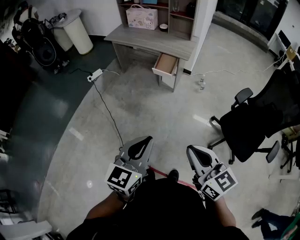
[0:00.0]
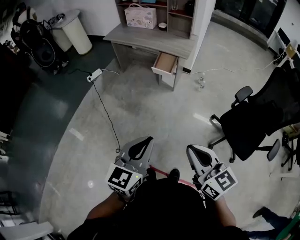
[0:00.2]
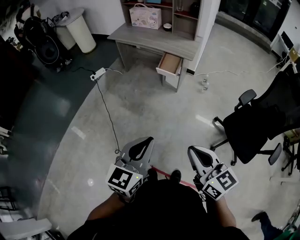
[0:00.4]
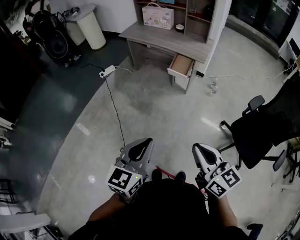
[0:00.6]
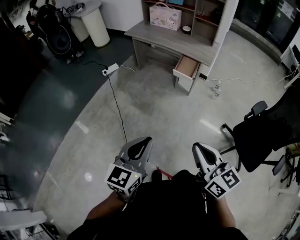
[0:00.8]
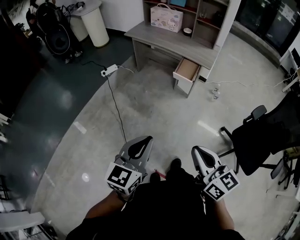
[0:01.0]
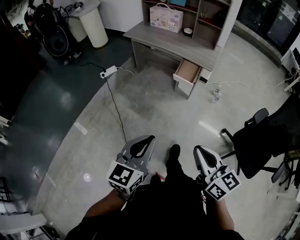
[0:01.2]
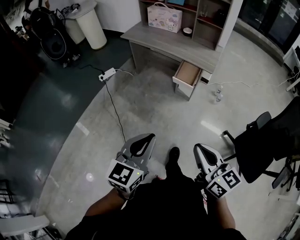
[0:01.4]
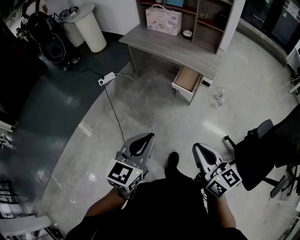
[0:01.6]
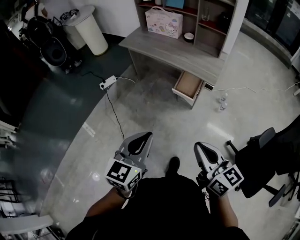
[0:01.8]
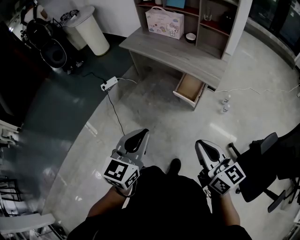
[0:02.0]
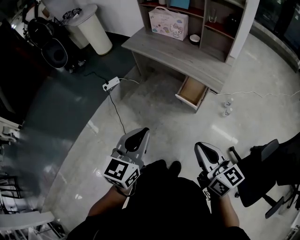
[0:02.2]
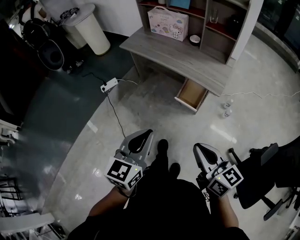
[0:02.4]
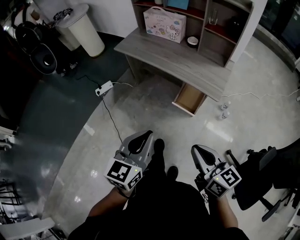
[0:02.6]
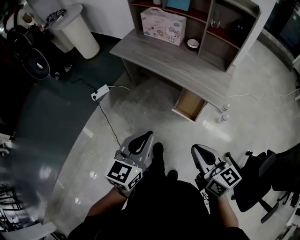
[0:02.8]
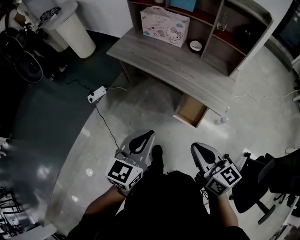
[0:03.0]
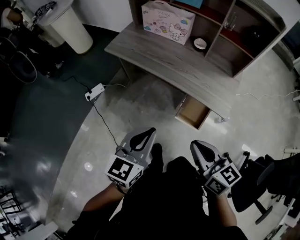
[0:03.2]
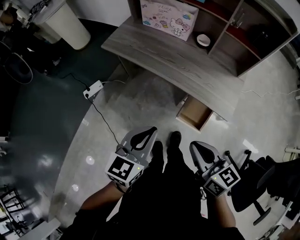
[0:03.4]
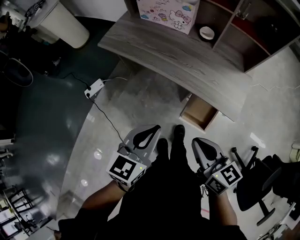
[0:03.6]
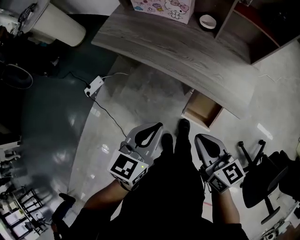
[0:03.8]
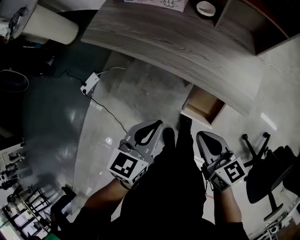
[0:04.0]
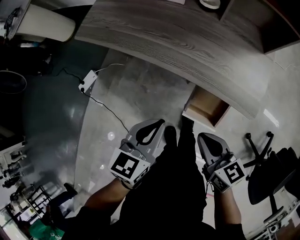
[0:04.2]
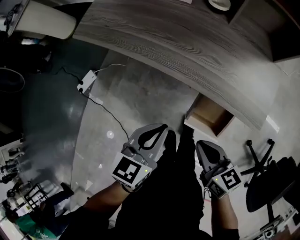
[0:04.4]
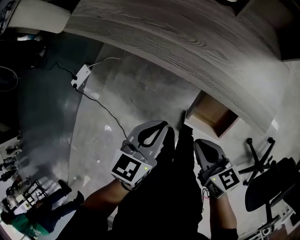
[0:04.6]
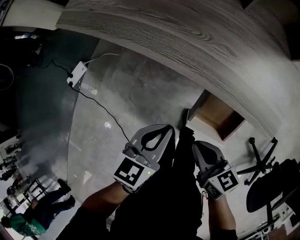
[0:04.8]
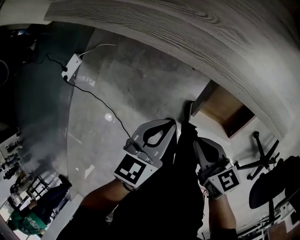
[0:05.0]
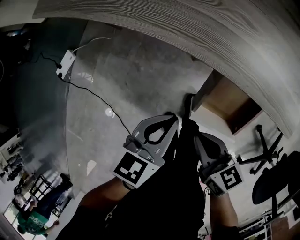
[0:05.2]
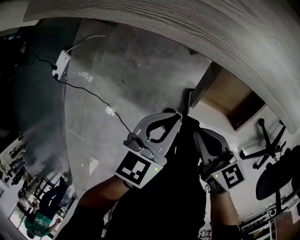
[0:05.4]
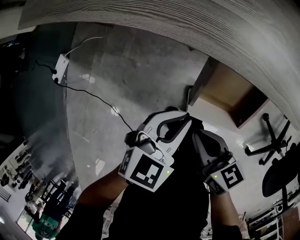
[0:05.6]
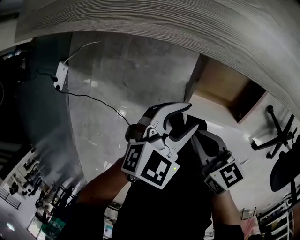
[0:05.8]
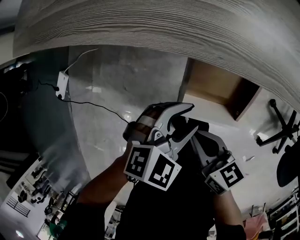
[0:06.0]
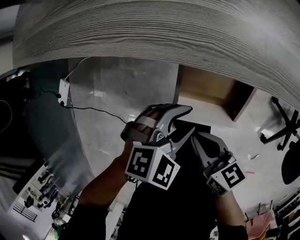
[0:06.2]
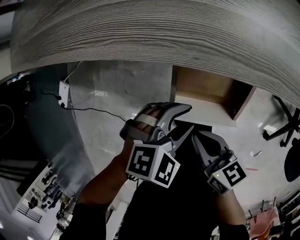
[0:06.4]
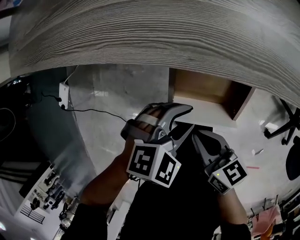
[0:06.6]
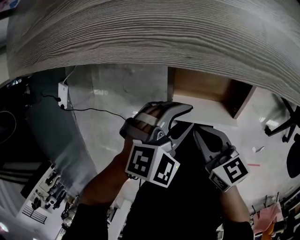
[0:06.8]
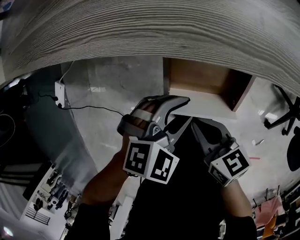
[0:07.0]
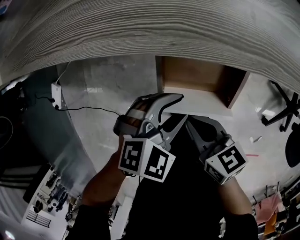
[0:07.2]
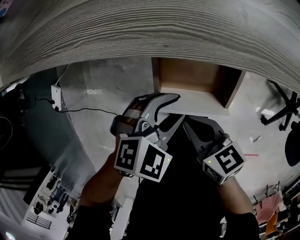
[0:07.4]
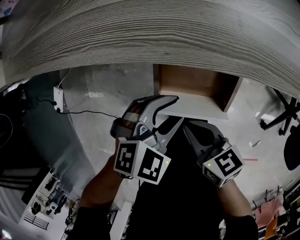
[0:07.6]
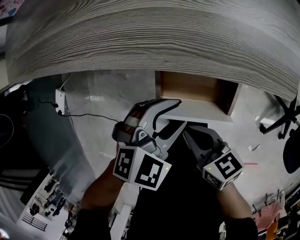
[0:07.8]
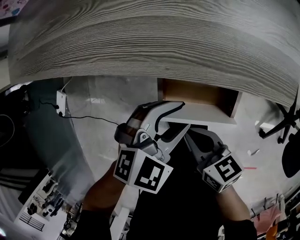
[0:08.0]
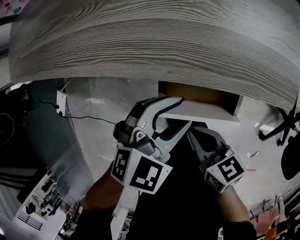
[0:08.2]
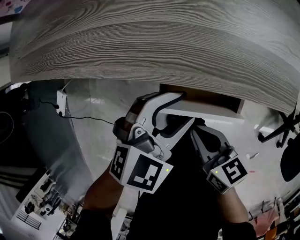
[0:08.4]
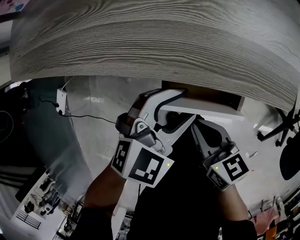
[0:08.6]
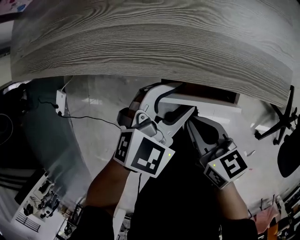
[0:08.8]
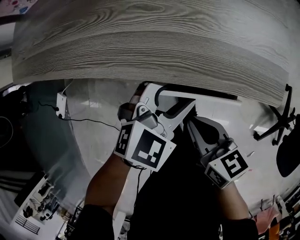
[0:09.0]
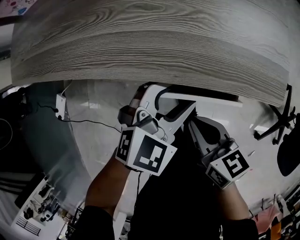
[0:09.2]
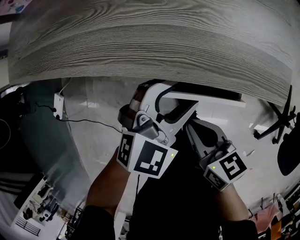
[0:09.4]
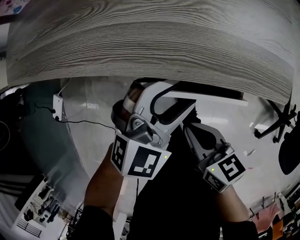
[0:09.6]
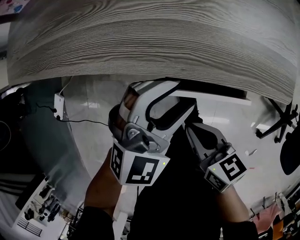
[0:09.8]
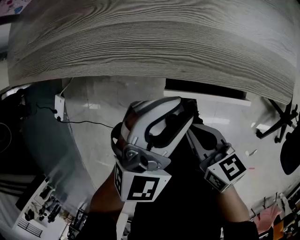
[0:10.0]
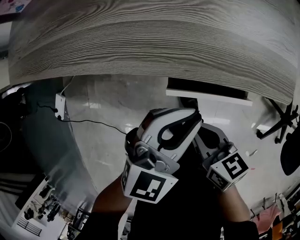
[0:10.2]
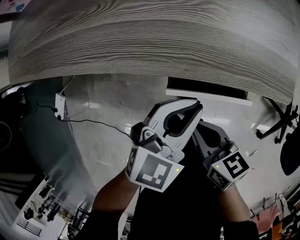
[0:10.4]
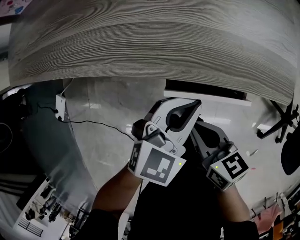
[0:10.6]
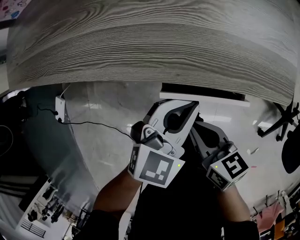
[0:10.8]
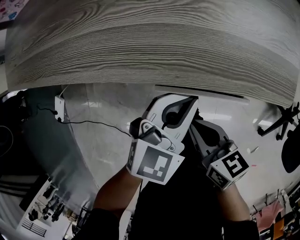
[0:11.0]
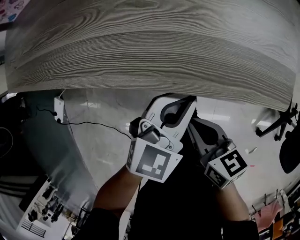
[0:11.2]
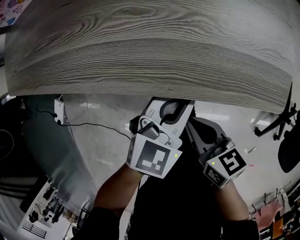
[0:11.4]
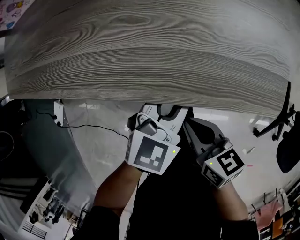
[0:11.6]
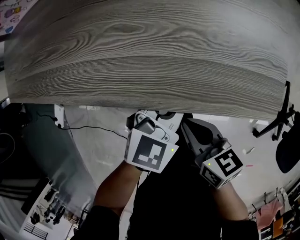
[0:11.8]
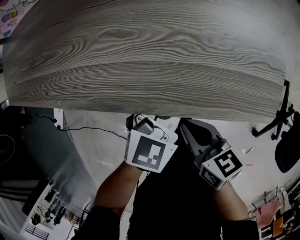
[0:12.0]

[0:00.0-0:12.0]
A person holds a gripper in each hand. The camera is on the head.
0:00.0 to 0:01.6: Both grippers travel together forward, roughly 25 cm.
0:01.6 to 0:03.0: The grippers both shift forward by about 35 cm.
0:03.0 to 0:04.4: The grippers both shift downward and forward by some 35 cm. The left gripper changes its angle by some 20 degrees.
0:04.4 to 0:06.0: The left gripper heads downward and to the right, covering approximately 25 cm, rotates about 50 degrees, and opens up, while the right gripper moves downward, approximately 20 cm.
0:06.0 to 0:07.6: The grippers make only small movements.
0:07.6 to 0:09.0: The grippers both shift forward and upward by roughly 10 cm.
0:09.0 to 0:10.4: The left gripper closes up.
0:10.4 to 0:12.0: Both grippers travel together forward, about 10 cm.

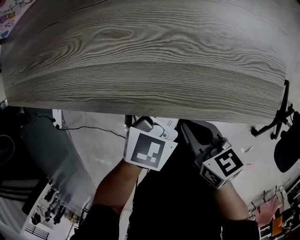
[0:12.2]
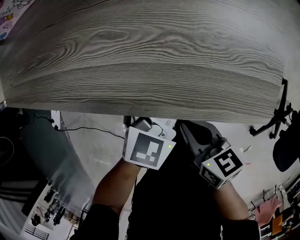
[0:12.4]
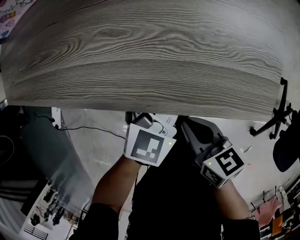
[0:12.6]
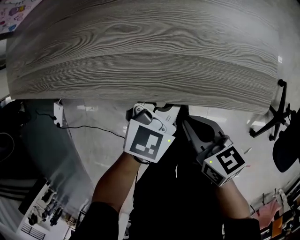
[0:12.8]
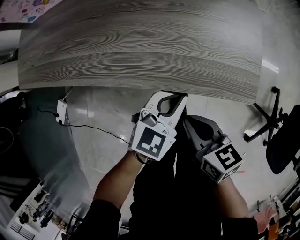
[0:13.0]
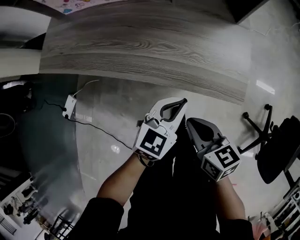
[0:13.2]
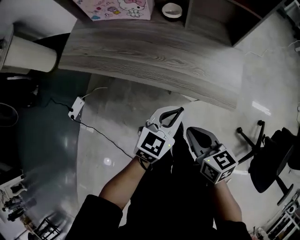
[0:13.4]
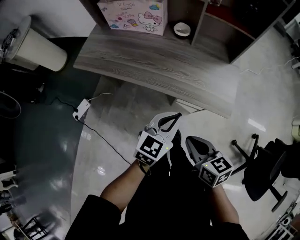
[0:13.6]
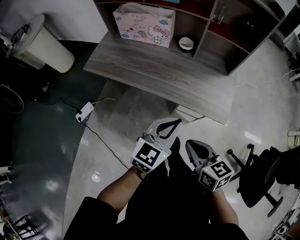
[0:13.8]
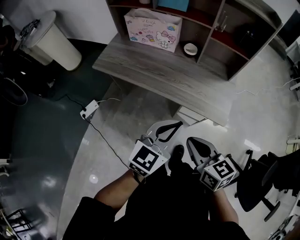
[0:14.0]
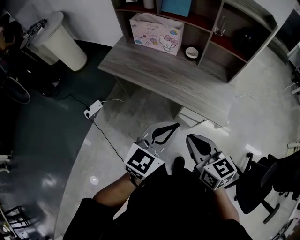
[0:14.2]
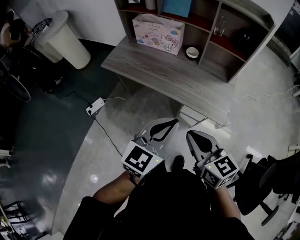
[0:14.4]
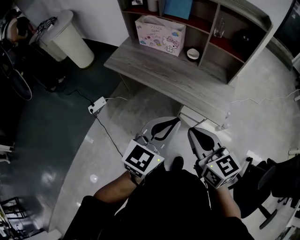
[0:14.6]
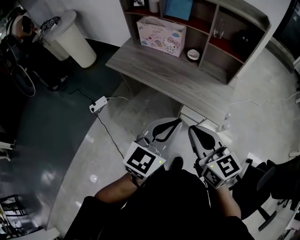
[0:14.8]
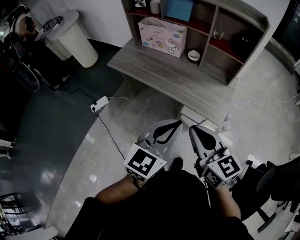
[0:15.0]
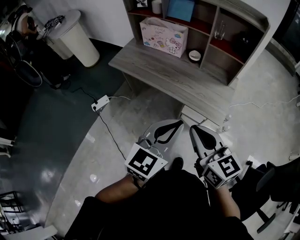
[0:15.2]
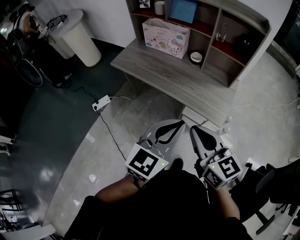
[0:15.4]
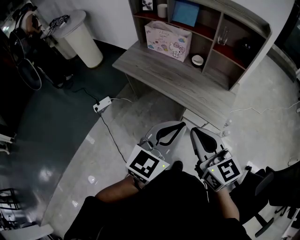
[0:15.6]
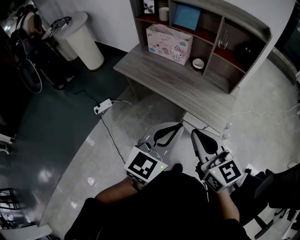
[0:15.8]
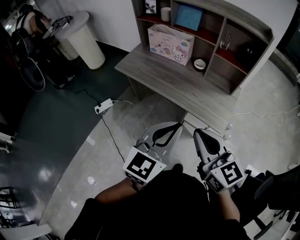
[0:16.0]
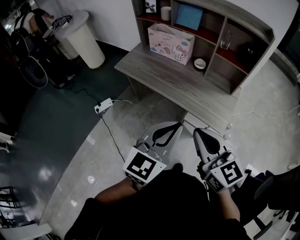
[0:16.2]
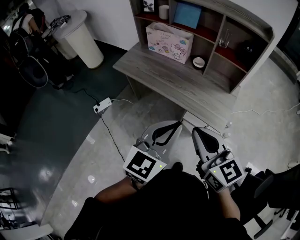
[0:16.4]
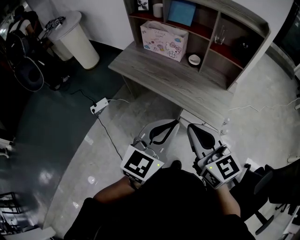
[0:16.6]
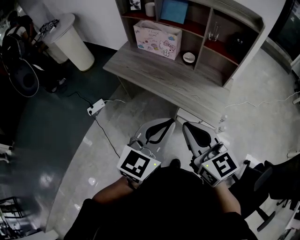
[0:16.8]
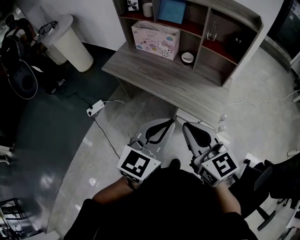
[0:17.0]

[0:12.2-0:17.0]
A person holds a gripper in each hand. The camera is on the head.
0:12.2 to 0:13.8: The left gripper moves upward and backward, some 40 cm, and turns by some 20 degrees; the right gripper moves upward, some 35 cm, and swivels some 30 degrees.
0:13.8 to 0:15.4: The right gripper moves upward, some 20 cm, and rotates approximately 20 degrees. The left gripper shifts approximately 20 cm upward and backward.
0:15.4 to 0:17.0: The grippers stay close to where they were, moving slightly.

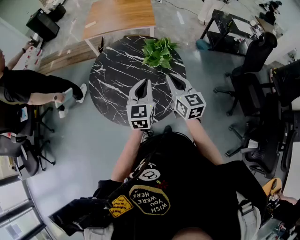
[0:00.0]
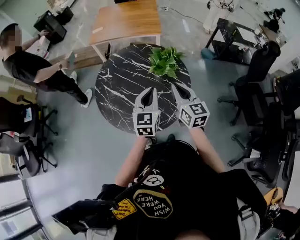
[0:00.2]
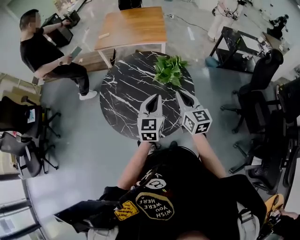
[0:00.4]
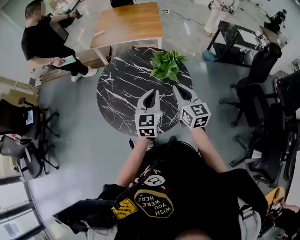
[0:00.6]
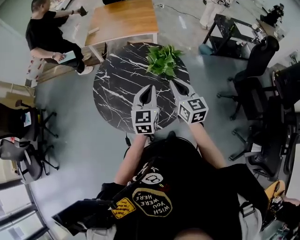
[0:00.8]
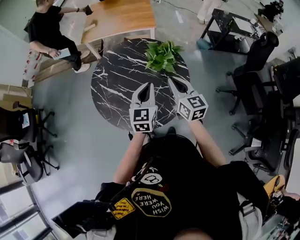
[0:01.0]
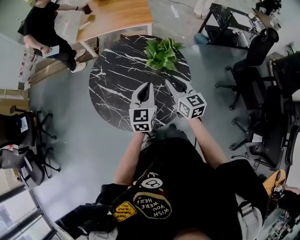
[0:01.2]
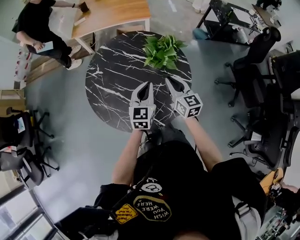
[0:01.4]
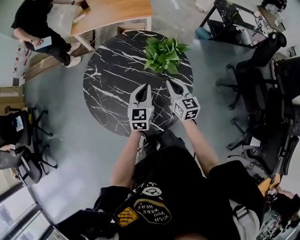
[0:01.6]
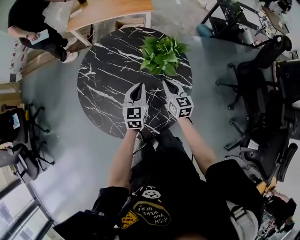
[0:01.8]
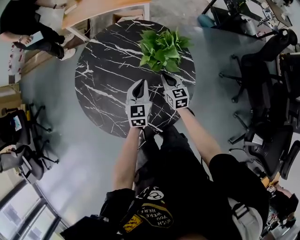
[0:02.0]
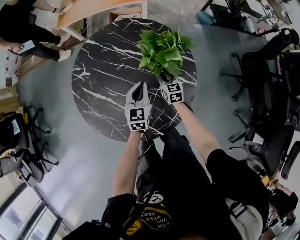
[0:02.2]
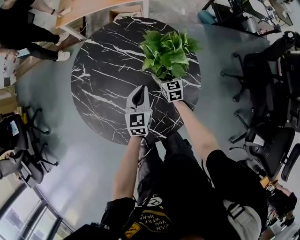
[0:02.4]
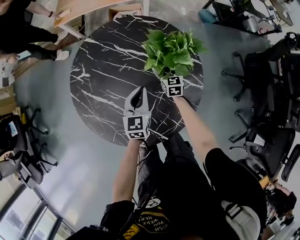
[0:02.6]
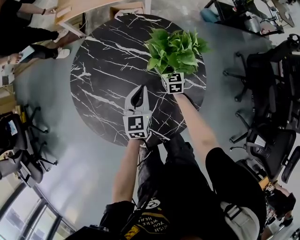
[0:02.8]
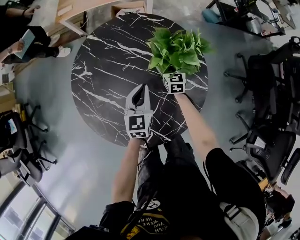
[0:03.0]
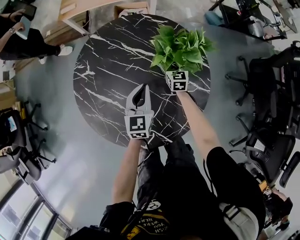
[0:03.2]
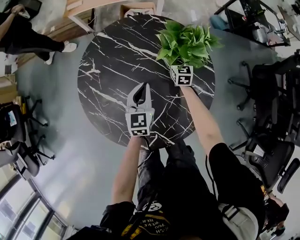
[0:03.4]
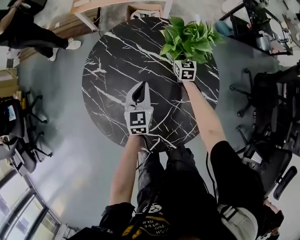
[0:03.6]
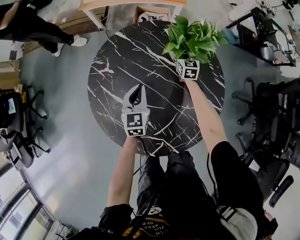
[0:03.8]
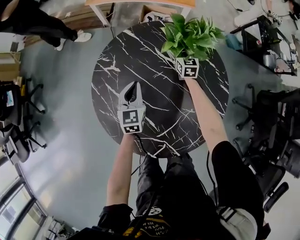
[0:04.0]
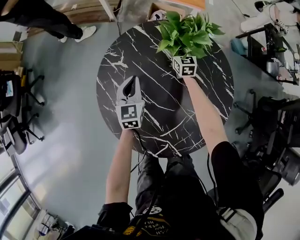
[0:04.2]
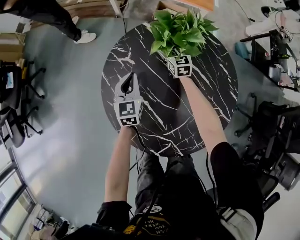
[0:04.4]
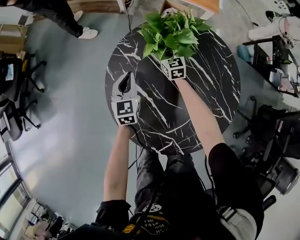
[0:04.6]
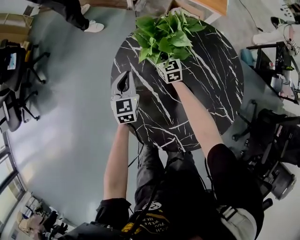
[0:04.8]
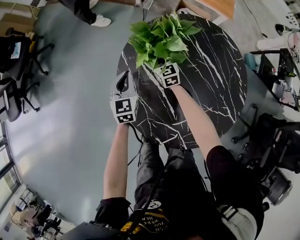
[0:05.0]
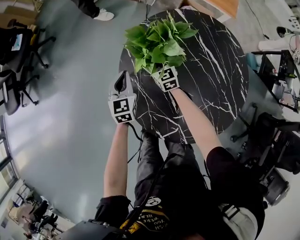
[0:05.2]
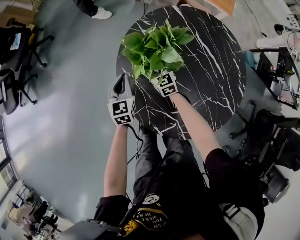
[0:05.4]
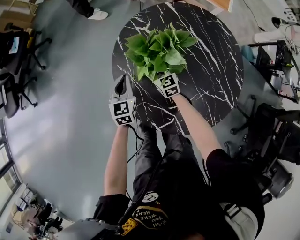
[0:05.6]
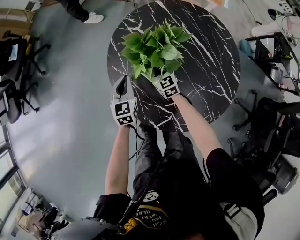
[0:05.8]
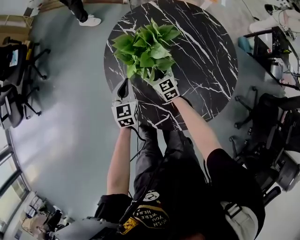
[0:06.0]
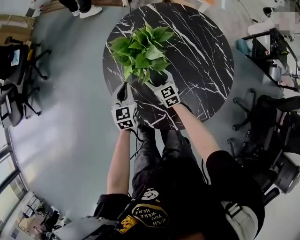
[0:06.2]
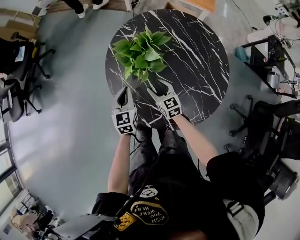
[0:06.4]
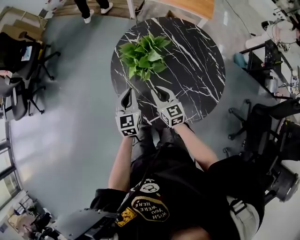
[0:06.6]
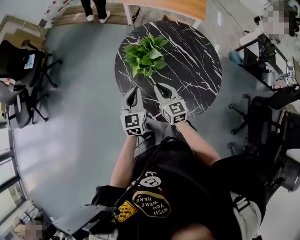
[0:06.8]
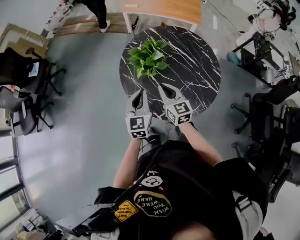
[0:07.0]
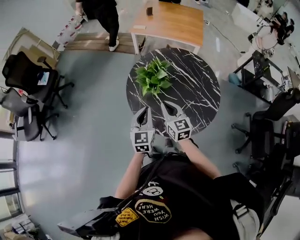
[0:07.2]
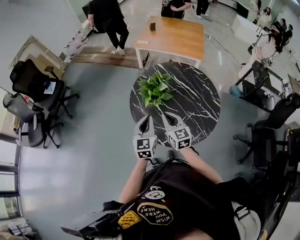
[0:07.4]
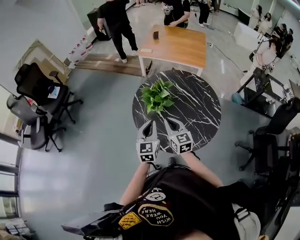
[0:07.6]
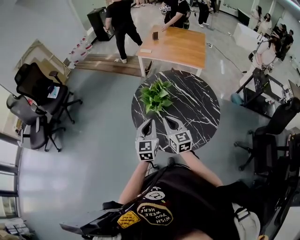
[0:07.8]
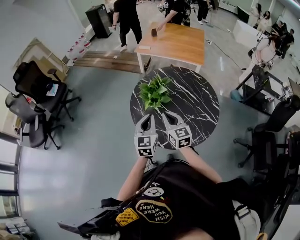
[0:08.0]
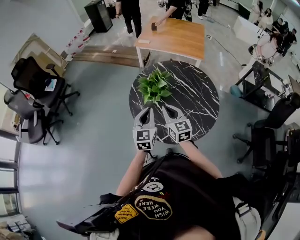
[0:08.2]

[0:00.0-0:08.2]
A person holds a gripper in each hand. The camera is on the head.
0:00.0 to 0:01.6: The two grippers go roughly 20 cm downward and forward.
0:01.6 to 0:03.2: The left gripper shifts roughly 15 cm downward and forward. Meanwhile the right gripper heads downward and forward, covering roughly 30 cm, and opens up.
0:03.2 to 0:05.0: The left gripper shifts by about 35 cm, and swivels about 30 degrees. Meanwhile the right gripper shifts by about 40 cm, and rotates approximately 40 degrees.
0:05.0 to 0:06.6: Both grippers move backward and upward, approximately 30 cm. The right gripper closes its fingers.
0:06.6 to 0:08.2: The right gripper moves upward, some 20 cm. The left gripper is displaced upward and backward by roughly 20 cm.
